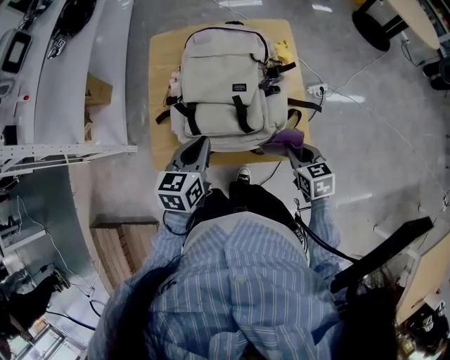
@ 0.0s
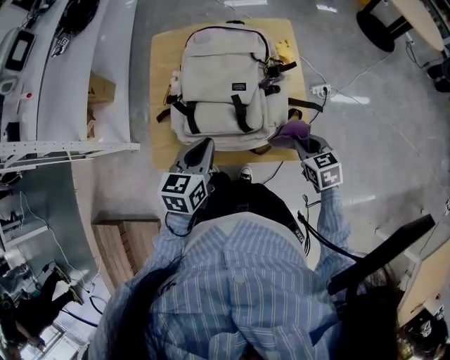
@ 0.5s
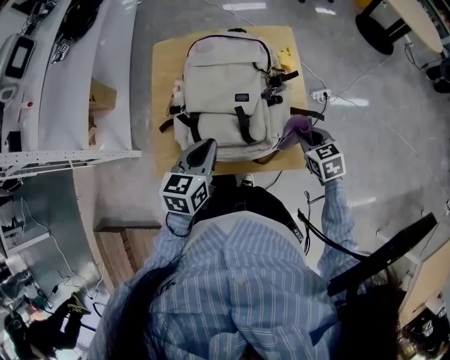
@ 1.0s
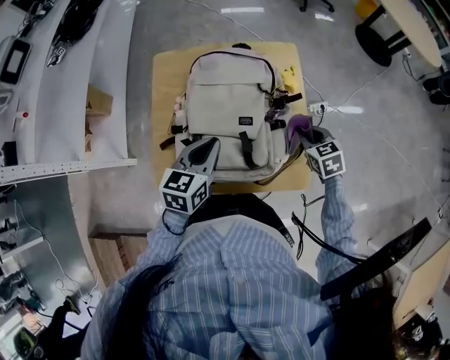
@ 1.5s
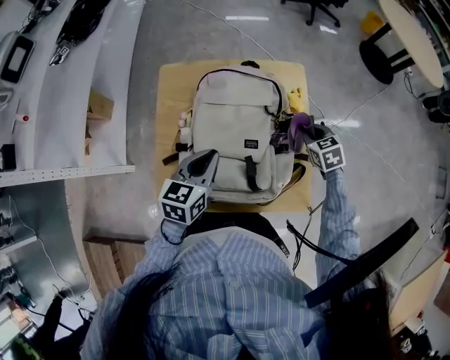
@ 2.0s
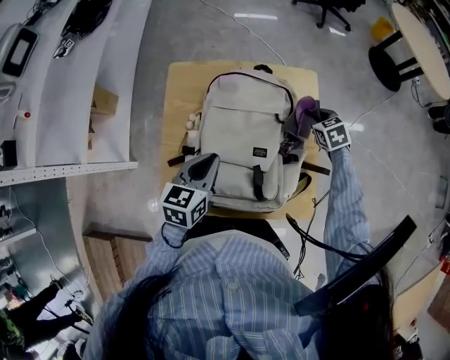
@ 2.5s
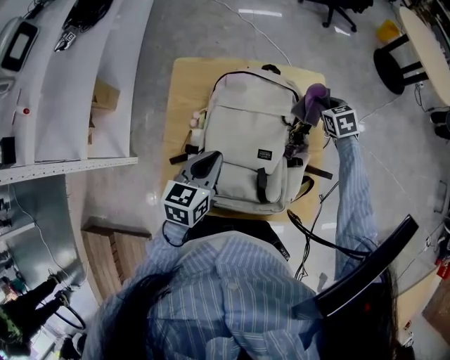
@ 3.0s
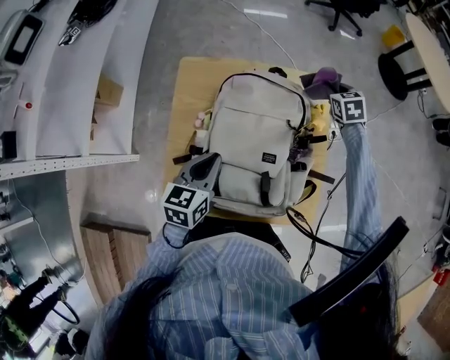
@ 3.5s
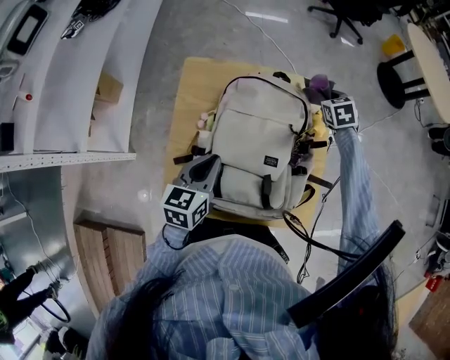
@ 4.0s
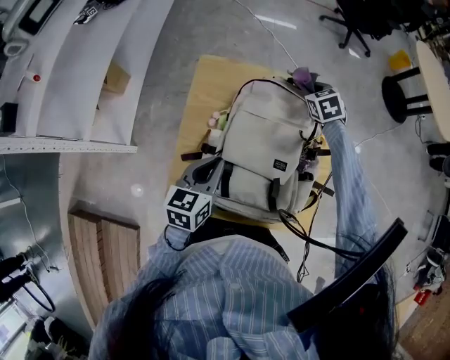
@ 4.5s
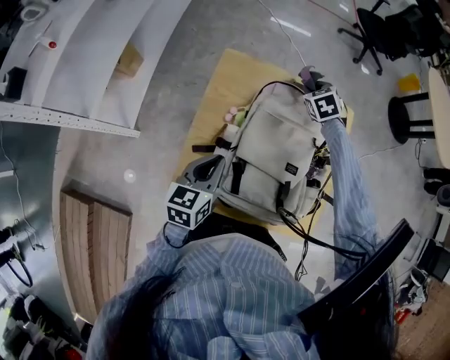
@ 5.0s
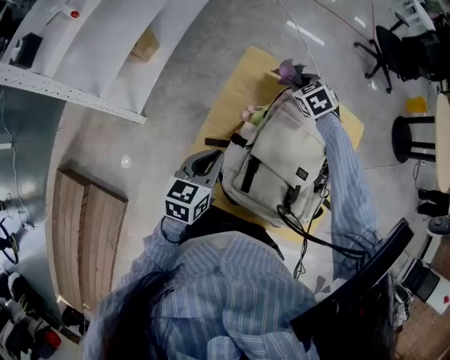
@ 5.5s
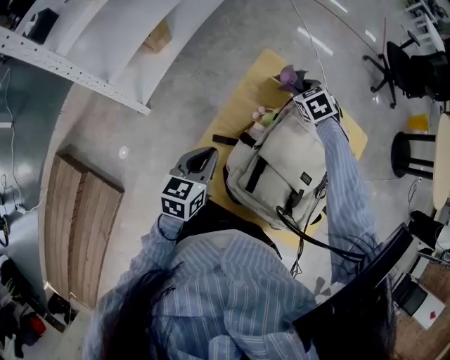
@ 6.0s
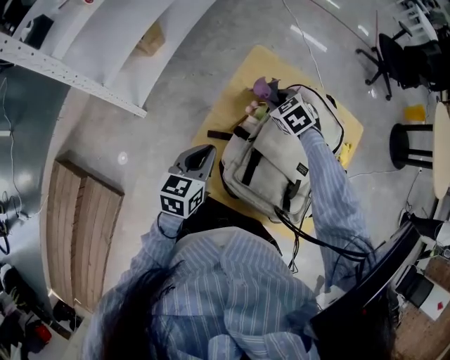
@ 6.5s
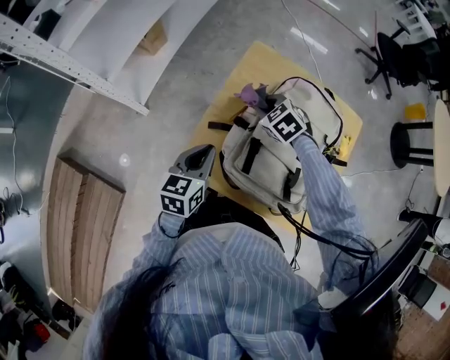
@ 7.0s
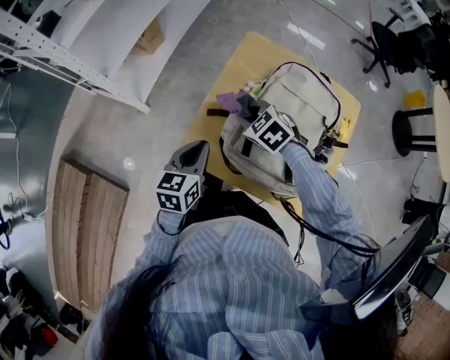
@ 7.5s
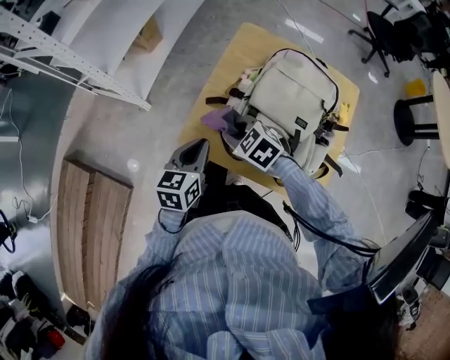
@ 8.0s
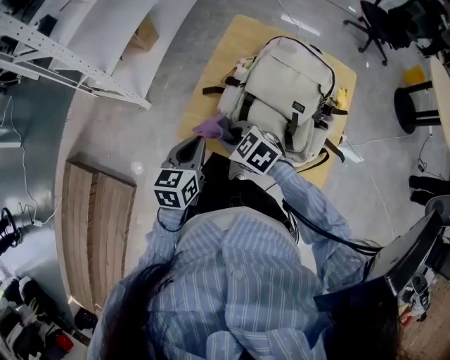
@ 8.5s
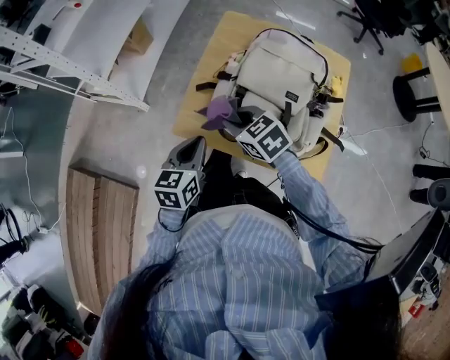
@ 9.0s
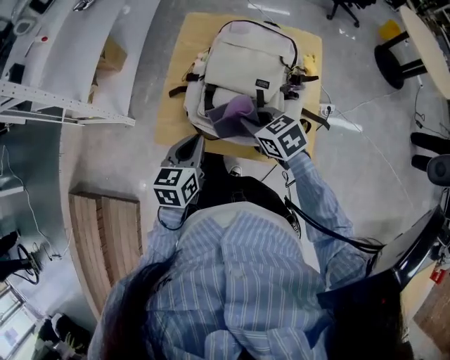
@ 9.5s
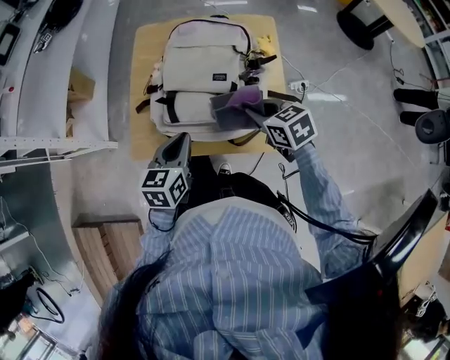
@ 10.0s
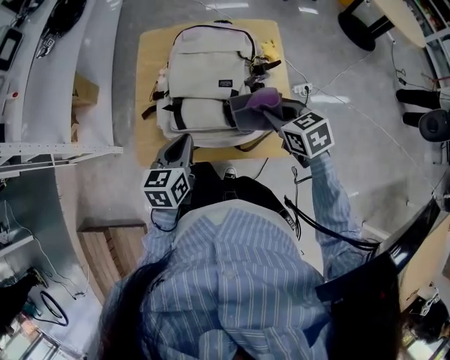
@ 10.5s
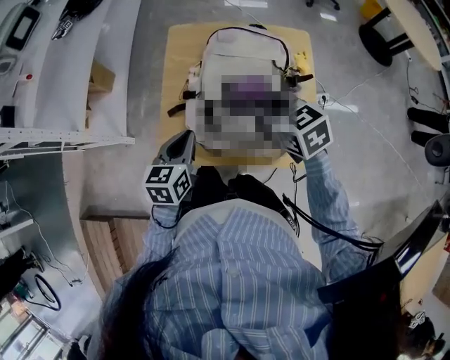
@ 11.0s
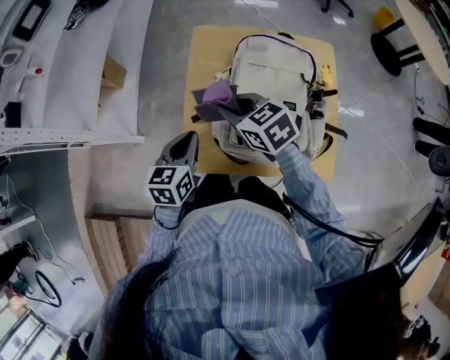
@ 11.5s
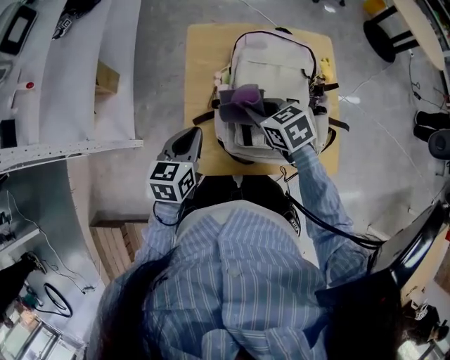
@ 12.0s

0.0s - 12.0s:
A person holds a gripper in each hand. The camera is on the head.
0.0s - 2.0s: The right gripper goes about 25 cm forward. The left gripper goes approximately 15 cm forward.
2.0s - 4.0s: The left gripper goes about 5 cm to the left; the right gripper travels forward by some 20 cm.
4.0s - 6.0s: The left gripper ends up approximately 15 cm from where it was, and rotates roughly 20 degrees; the right gripper changes place by about 35 cm, and rotates some 40 degrees.
6.0s - 8.0s: The left gripper shifts approximately 10 cm backward. The right gripper heads backward and to the left, covering some 35 cm, and turns by roughly 30 degrees.
8.0s - 10.0s: The left gripper shifts by roughly 15 cm, and turns by roughly 20 degrees. Meanwhile the right gripper moves about 30 cm, and rotates around the line of its fingers by about 40 degrees, clockwise from behind.
10.0s - 12.0s: Both grippers move to the left and forward, about 20 cm.

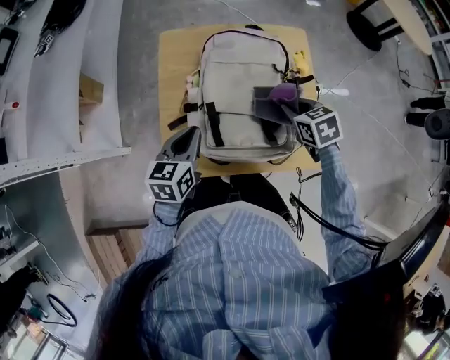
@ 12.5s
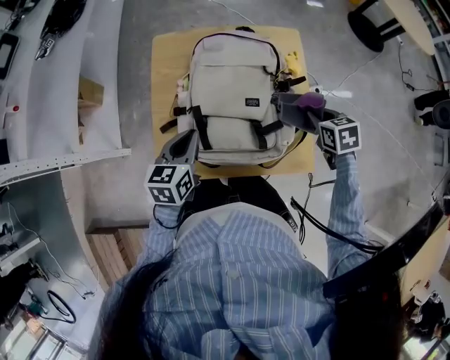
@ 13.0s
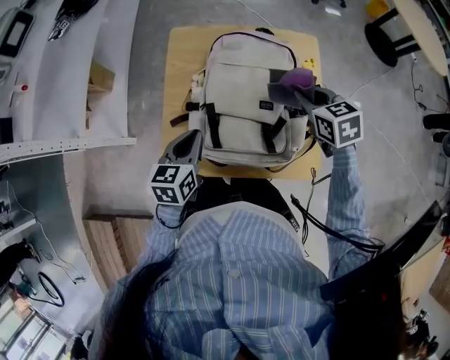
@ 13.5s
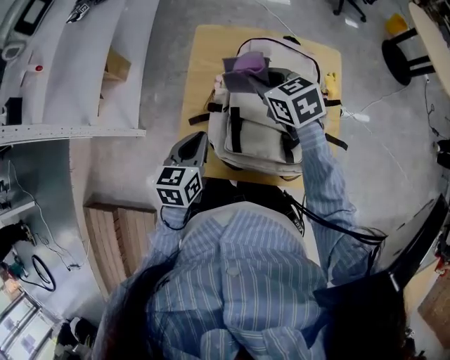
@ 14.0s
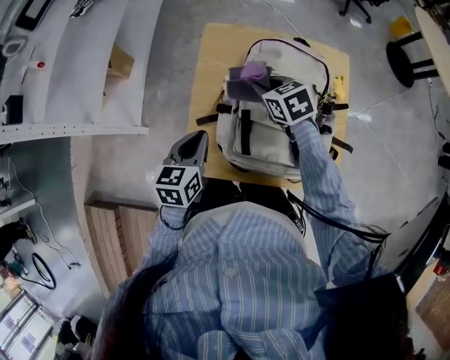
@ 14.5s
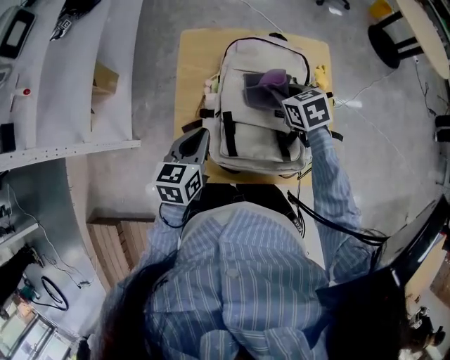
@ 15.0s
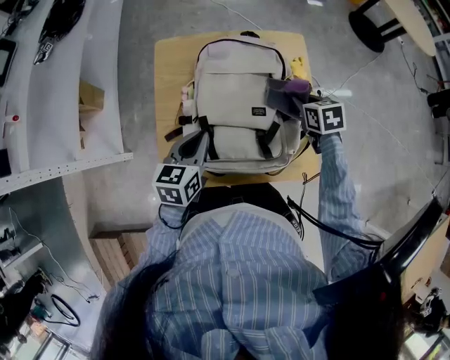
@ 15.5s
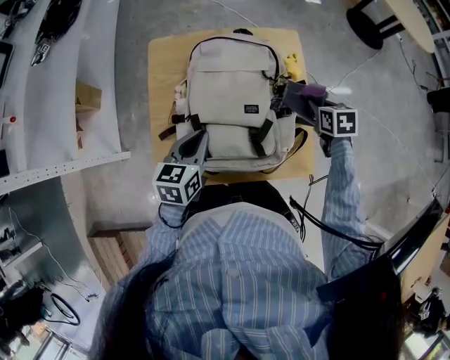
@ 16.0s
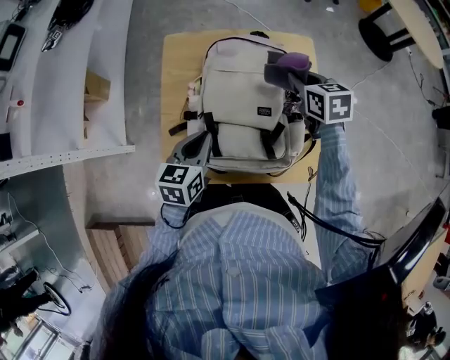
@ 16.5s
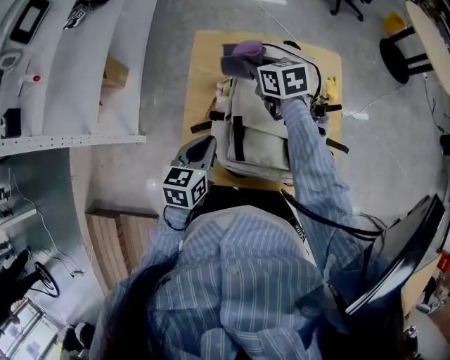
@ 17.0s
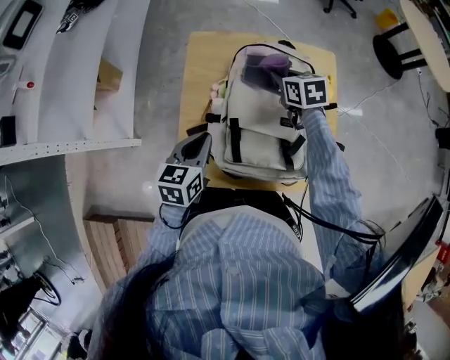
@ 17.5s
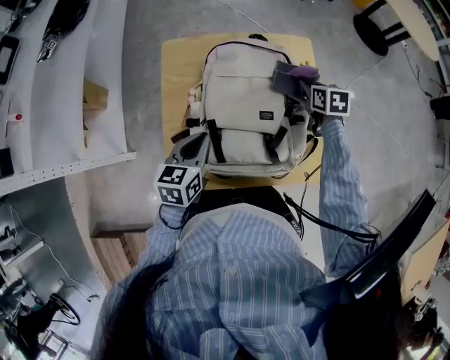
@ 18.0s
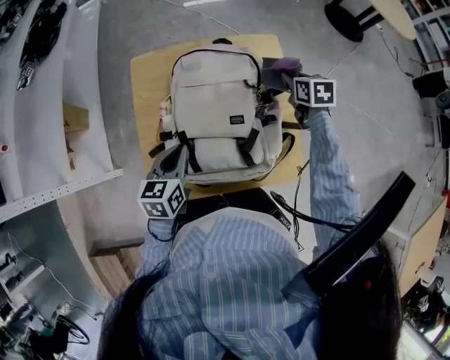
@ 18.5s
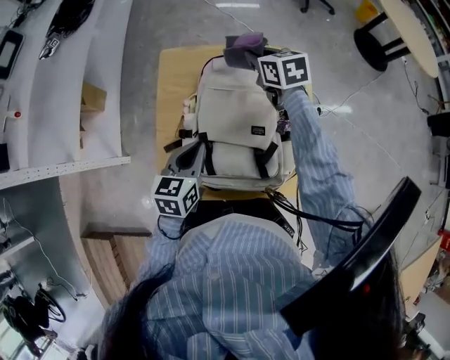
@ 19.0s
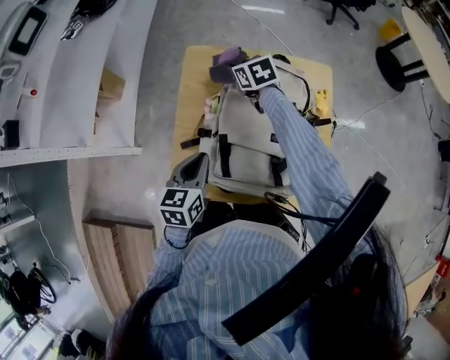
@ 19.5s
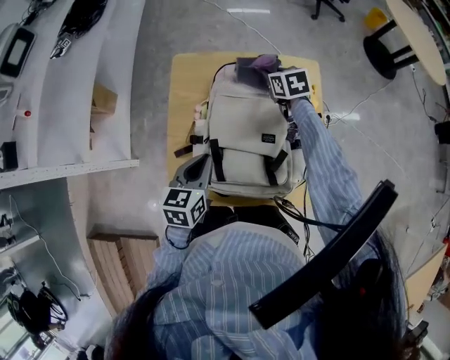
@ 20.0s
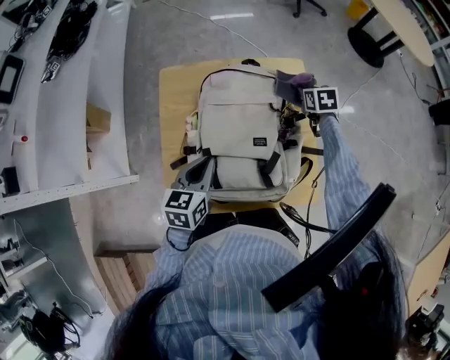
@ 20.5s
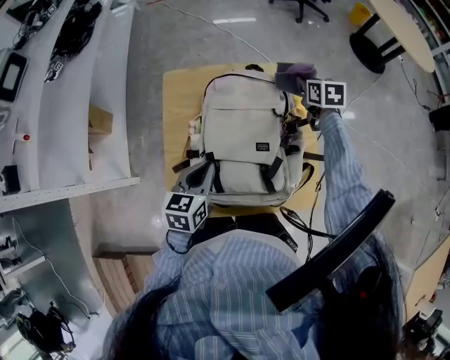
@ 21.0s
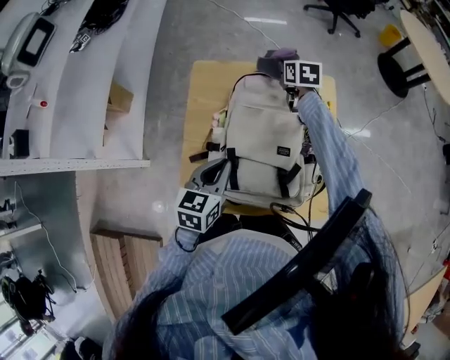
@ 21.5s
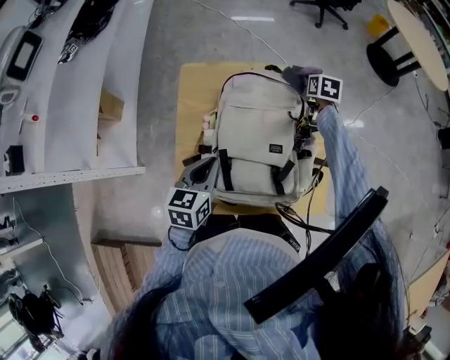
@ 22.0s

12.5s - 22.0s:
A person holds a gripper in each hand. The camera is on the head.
12.5s - 14.5s: The right gripper shifts approximately 20 cm to the left and forward, while the left gripper heads to the left, covering roughly 5 cm.
14.5s - 16.5s: The right gripper rotates approximately 20 degrees, while the left gripper changes place by about 10 cm.
16.5s - 18.0s: The right gripper shifts approximately 10 cm downward, and moves some 20 cm to the left and comes back.
18.0s - 20.0s: The right gripper goes left and right, about 35 cm each way, reversing 2 times.
20.0s - 22.0s: The right gripper goes left and right, roughly 20 cm each way, reversing 2 times, and changes its angle by some 30 degrees.

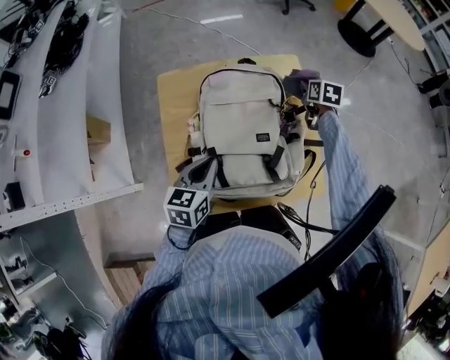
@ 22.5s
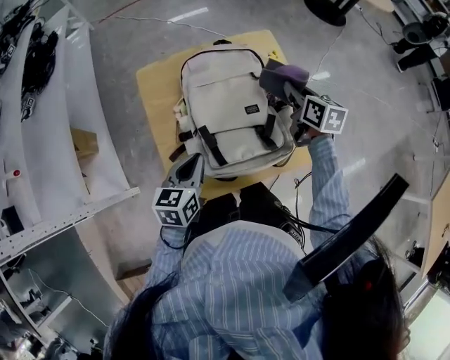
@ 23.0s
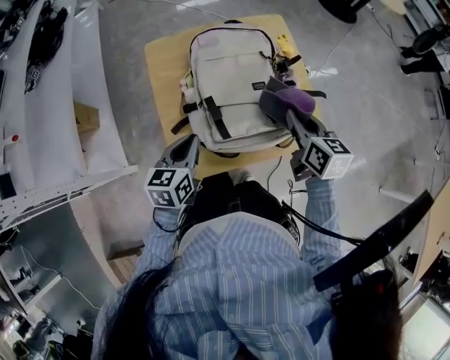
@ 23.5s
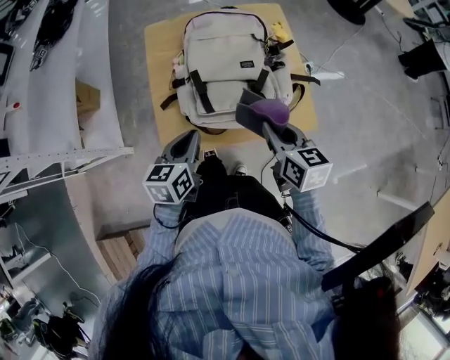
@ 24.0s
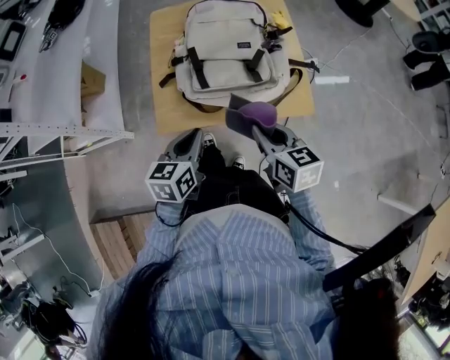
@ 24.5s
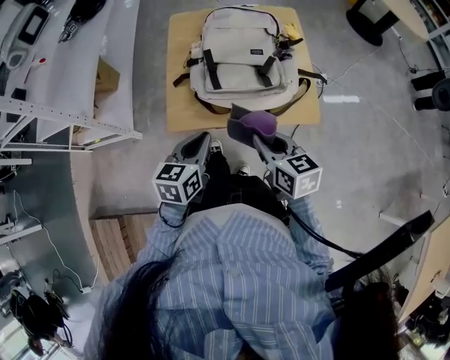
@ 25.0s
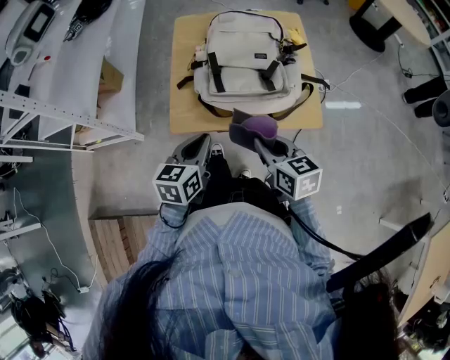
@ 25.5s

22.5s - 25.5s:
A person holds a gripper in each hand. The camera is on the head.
22.5s - 24.0s: The right gripper is displaced backward by about 40 cm, and swivels roughly 30 degrees. The left gripper is displaced backward by some 15 cm.
24.0s - 25.5s: Both grippers travel together backward, some 10 cm.

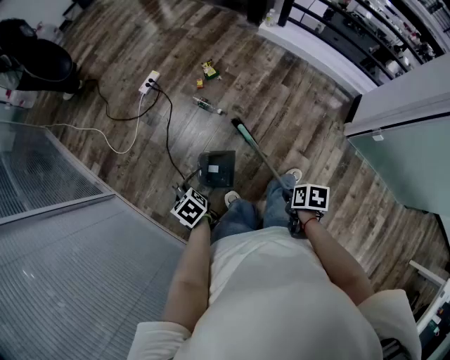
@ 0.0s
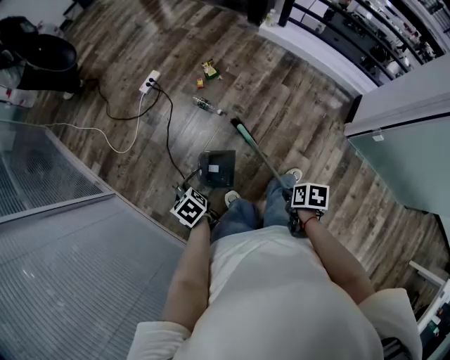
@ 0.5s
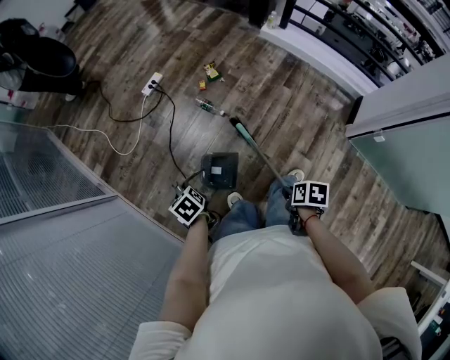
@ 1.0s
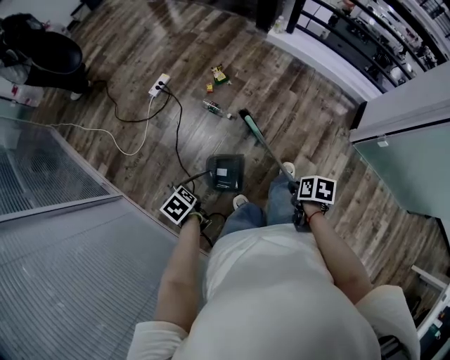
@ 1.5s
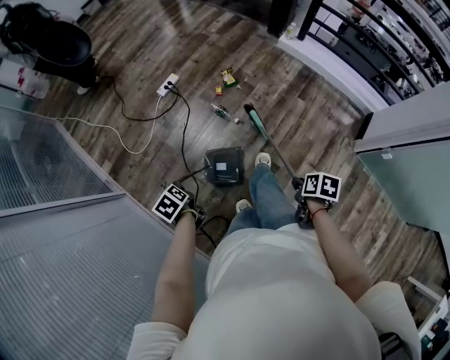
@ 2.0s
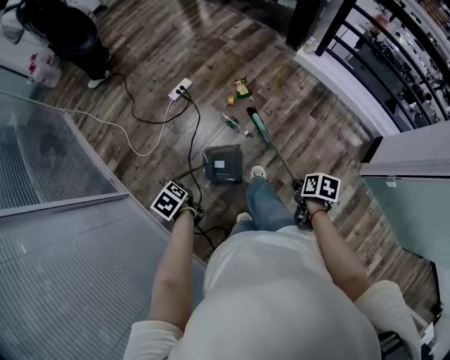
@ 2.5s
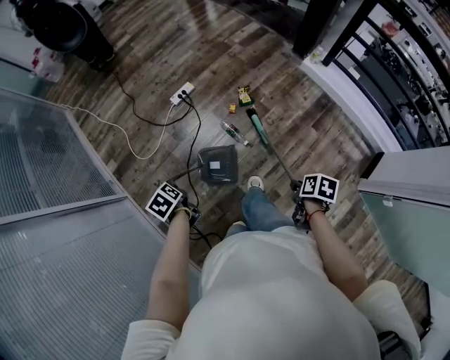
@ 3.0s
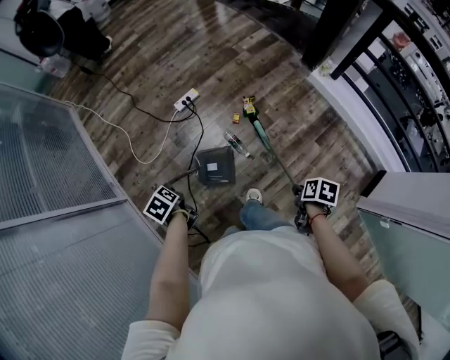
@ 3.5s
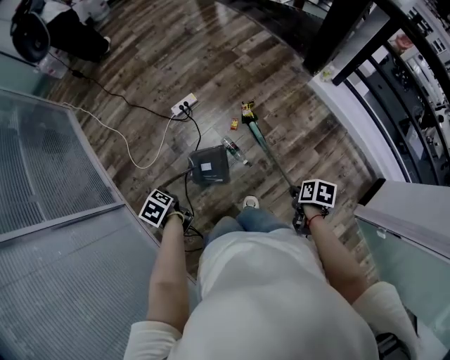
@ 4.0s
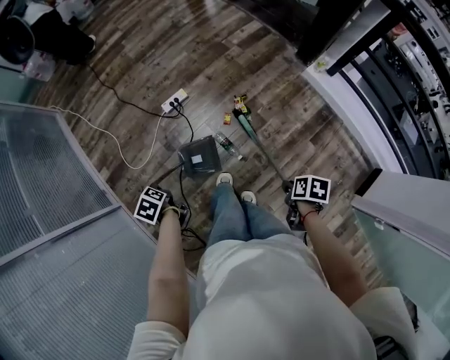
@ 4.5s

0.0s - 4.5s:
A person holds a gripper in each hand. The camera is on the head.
0.0s - 2.0s: The left gripper changes place by some 10 cm.
2.0s - 4.5s: The left gripper changes place by approximately 30 cm, and swivels some 20 degrees.
